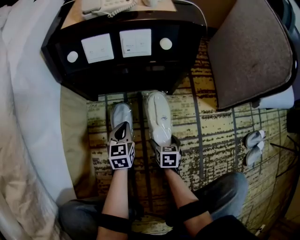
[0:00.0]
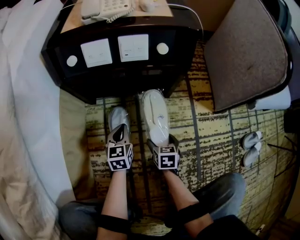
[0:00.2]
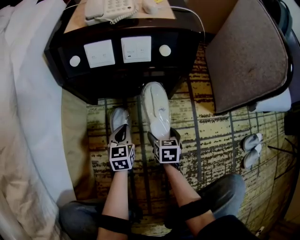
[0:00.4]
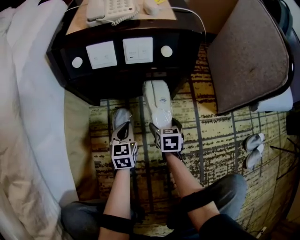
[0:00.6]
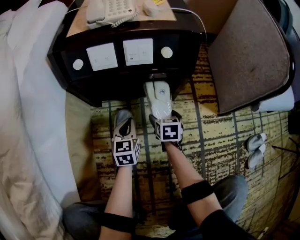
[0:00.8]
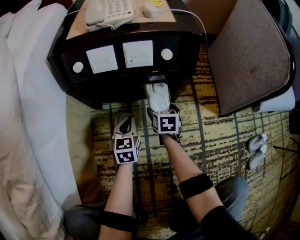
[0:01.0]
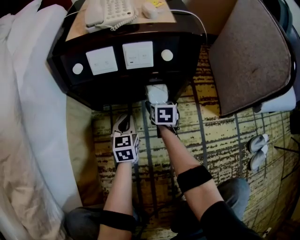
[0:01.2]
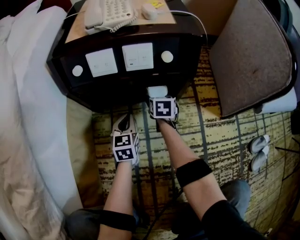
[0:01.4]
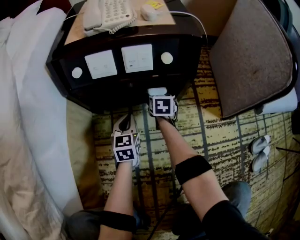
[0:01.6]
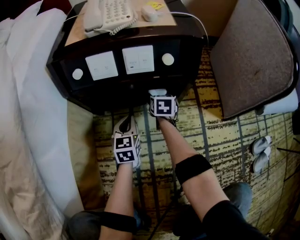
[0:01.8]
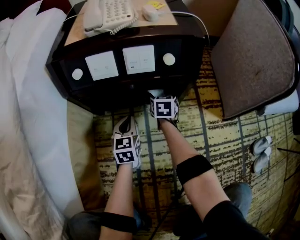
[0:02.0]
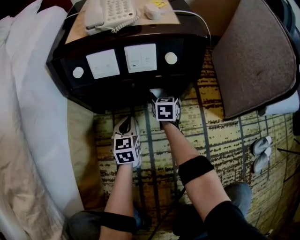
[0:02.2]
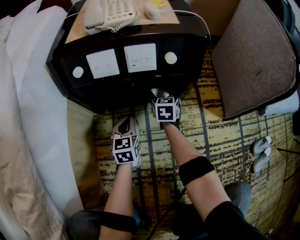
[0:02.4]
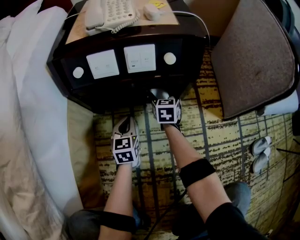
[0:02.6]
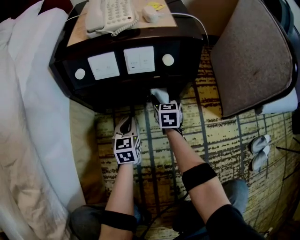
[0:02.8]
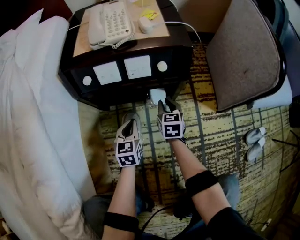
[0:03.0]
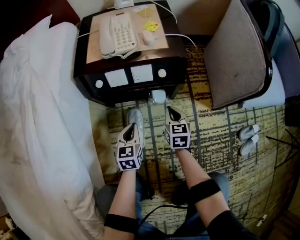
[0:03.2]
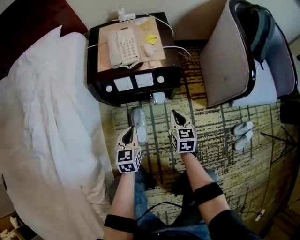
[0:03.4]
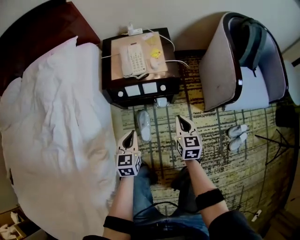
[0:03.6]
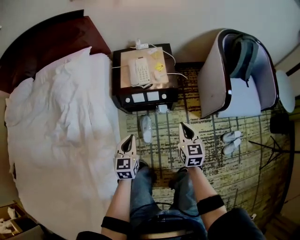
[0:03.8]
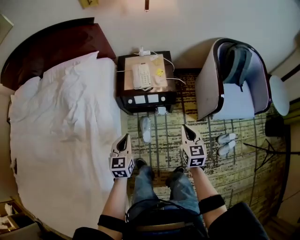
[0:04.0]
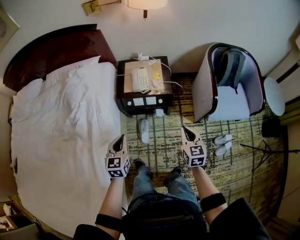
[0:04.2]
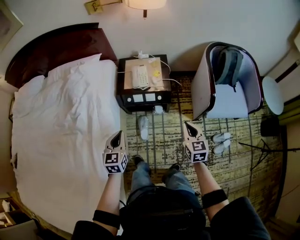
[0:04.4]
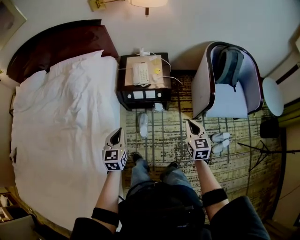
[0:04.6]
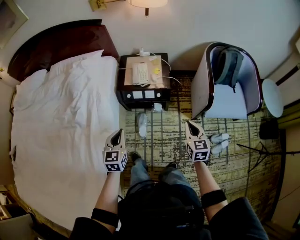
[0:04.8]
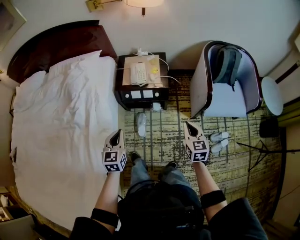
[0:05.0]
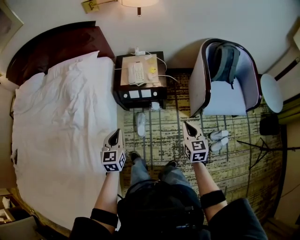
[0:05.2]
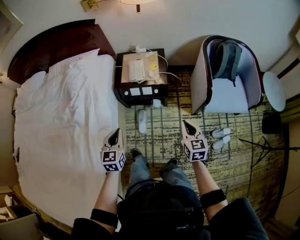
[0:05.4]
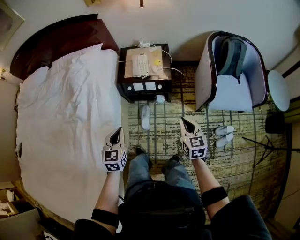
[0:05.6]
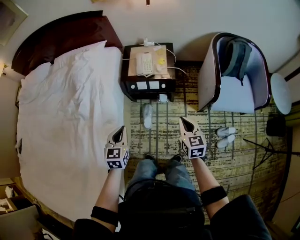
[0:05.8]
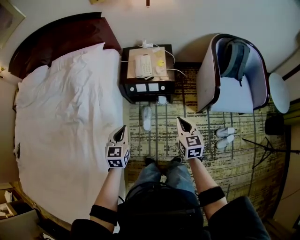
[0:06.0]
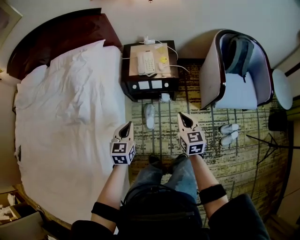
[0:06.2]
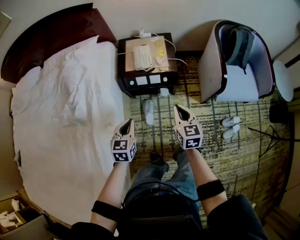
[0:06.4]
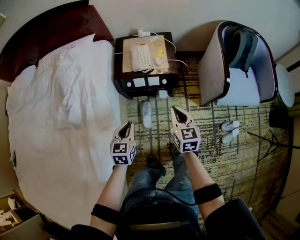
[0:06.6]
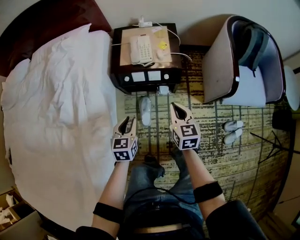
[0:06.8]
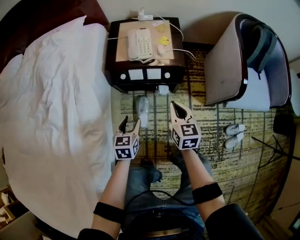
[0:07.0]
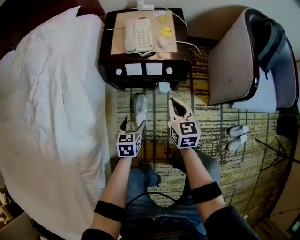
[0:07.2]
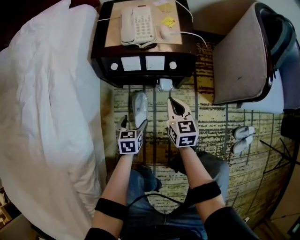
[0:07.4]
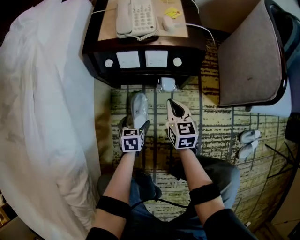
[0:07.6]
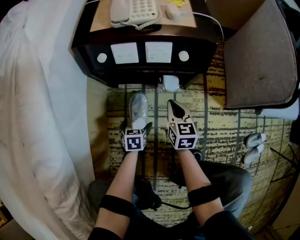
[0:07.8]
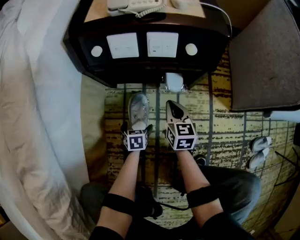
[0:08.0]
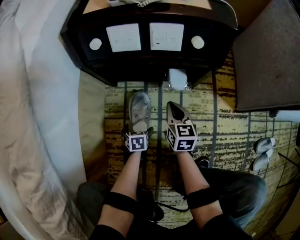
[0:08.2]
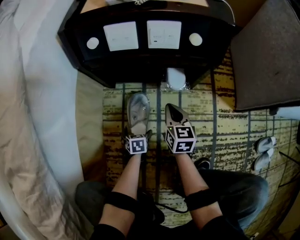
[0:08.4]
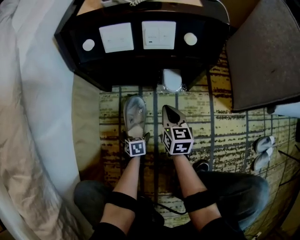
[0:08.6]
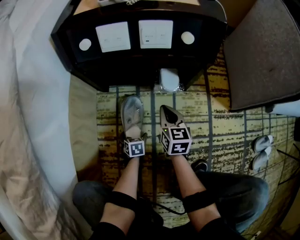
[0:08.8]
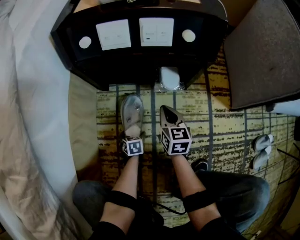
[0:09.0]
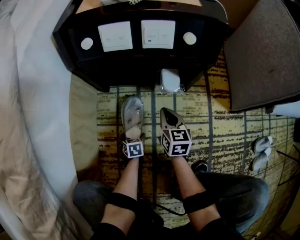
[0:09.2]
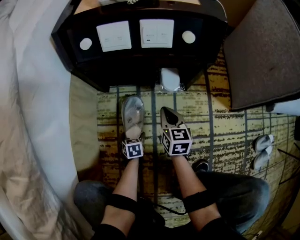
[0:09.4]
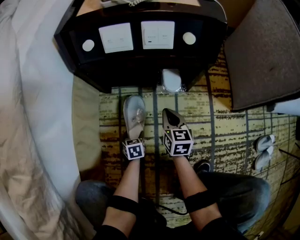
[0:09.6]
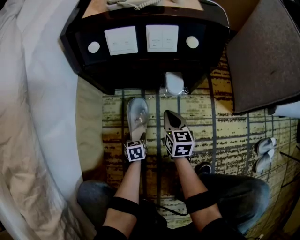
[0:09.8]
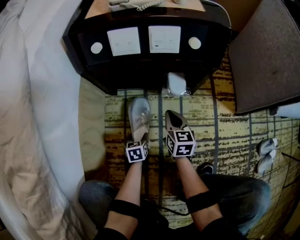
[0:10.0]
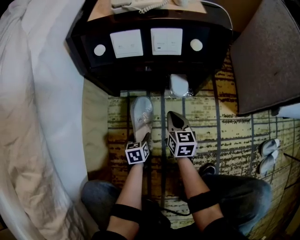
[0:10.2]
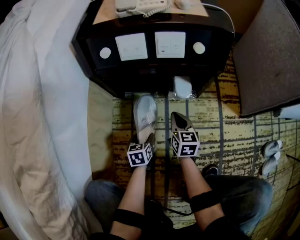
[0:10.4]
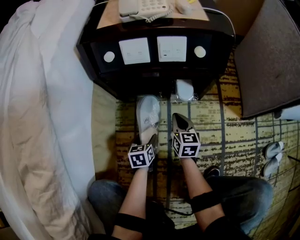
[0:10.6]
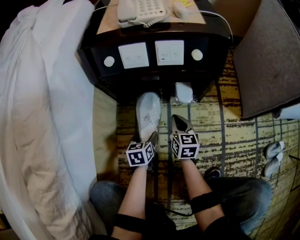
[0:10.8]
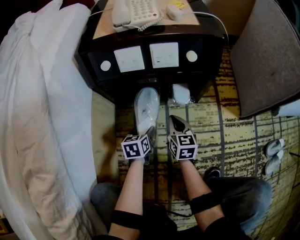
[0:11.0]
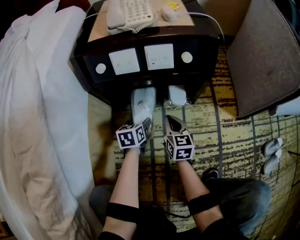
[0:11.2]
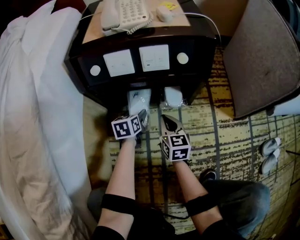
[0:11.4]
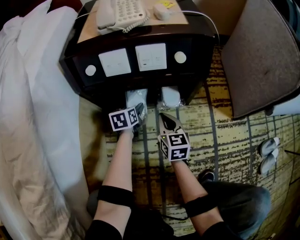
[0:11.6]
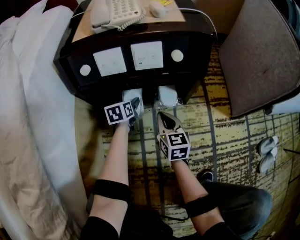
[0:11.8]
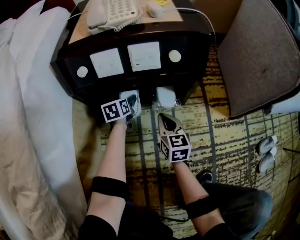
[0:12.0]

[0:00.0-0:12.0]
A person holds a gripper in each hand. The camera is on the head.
0:00.0 to 0:01.6: The right gripper is displaced forward by some 30 cm. The left gripper shifts about 10 cm forward.
0:01.6 to 0:03.0: The right gripper shifts approximately 15 cm upward and backward, and closes; the left gripper goes some 5 cm upward.
0:03.0 to 0:04.4: The grippers both shift upward by about 70 cm.
0:06.0 to 0:07.6: Both grippers move downward, roughly 60 cm. The left gripper changes its angle by roughly 30 degrees, and opens up.
0:07.6 to 0:09.0: Both grippers travel together downward, some 25 cm.
0:09.0 to 0:10.4: The left gripper travels upward by about 10 cm.
0:10.4 to 0:12.0: The right gripper shifts by approximately 5 cm, while the left gripper goes approximately 25 cm forward.

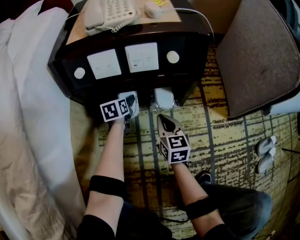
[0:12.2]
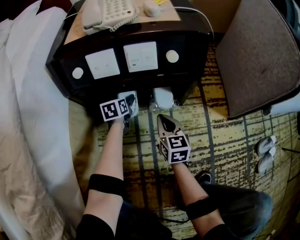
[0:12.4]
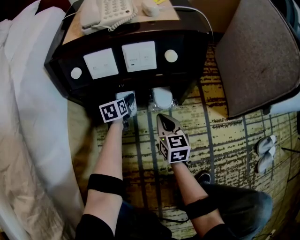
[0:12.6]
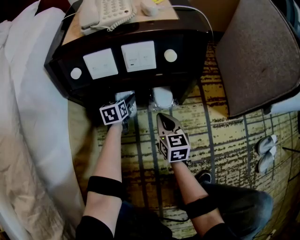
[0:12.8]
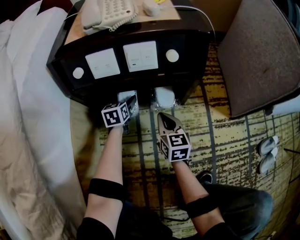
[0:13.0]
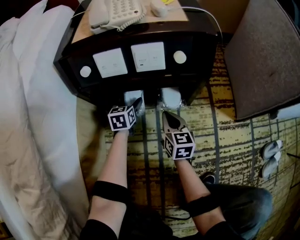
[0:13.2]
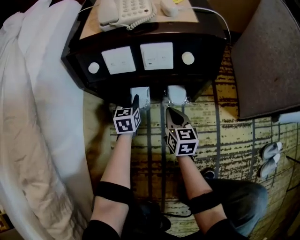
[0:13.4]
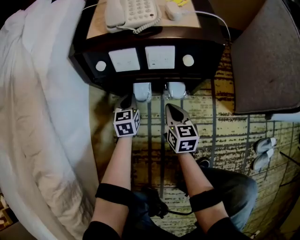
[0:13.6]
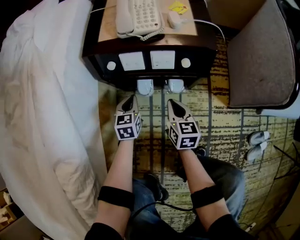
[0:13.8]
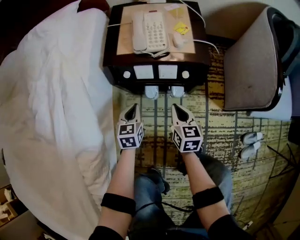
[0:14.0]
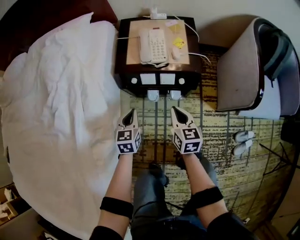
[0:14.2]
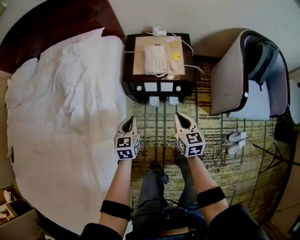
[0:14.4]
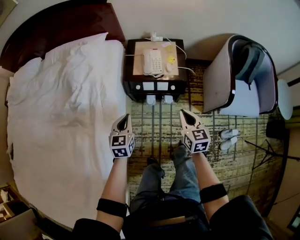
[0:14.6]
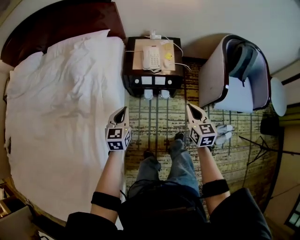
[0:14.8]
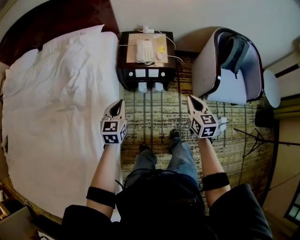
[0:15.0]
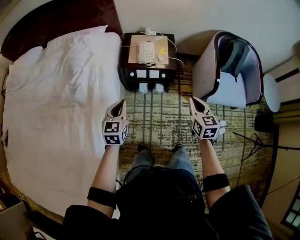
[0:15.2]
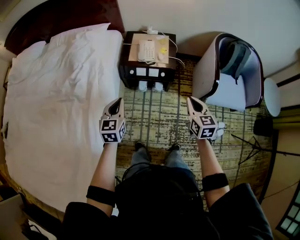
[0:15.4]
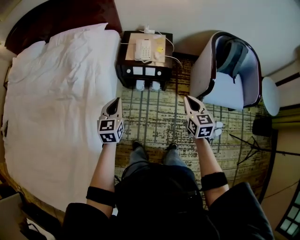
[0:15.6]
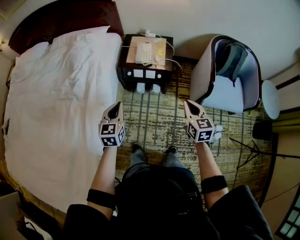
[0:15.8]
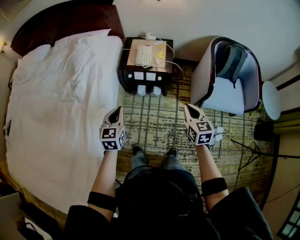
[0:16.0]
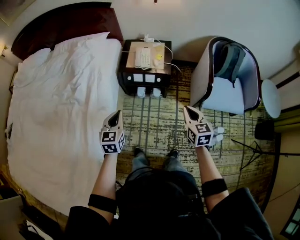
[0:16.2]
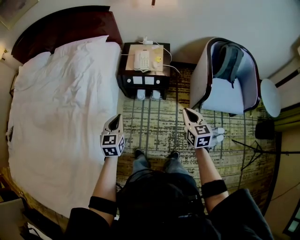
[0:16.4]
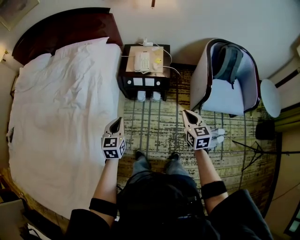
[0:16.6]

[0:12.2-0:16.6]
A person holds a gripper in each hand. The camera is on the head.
0:12.2 to 0:13.6: The left gripper shifts about 10 cm upward and backward, and closes up, while the right gripper goes approximately 5 cm upward.
0:13.6 to 0:15.2: Both grippers travel together upward, some 70 cm.
0:15.2 to 0:16.6: The two grippers go roughly 10 cm backward and to the right.

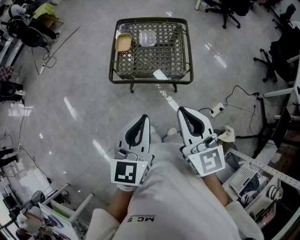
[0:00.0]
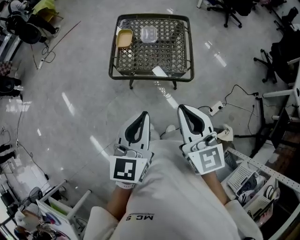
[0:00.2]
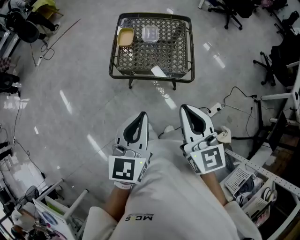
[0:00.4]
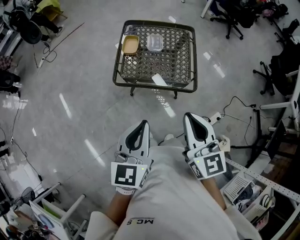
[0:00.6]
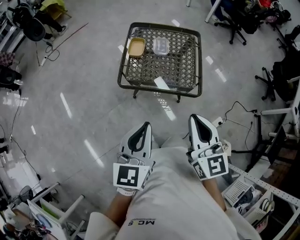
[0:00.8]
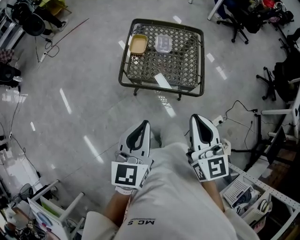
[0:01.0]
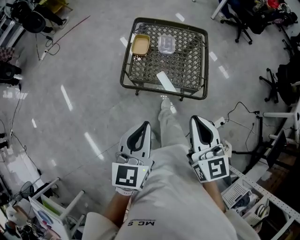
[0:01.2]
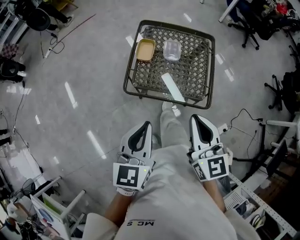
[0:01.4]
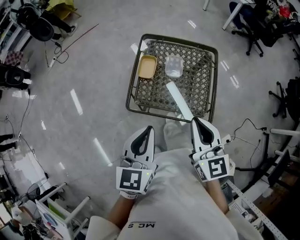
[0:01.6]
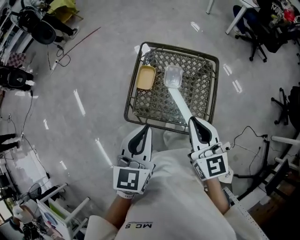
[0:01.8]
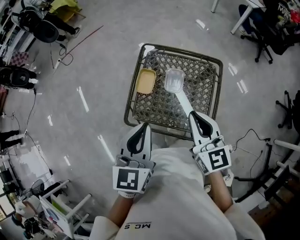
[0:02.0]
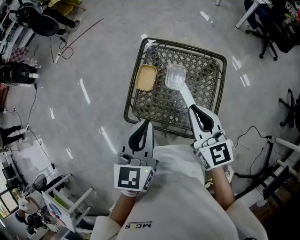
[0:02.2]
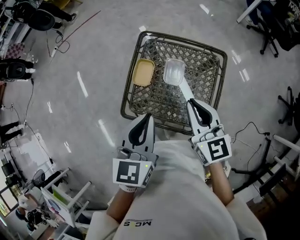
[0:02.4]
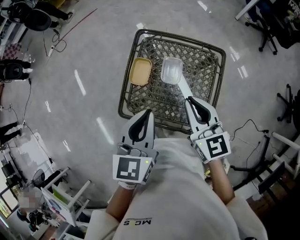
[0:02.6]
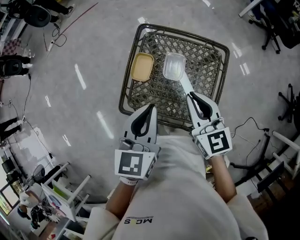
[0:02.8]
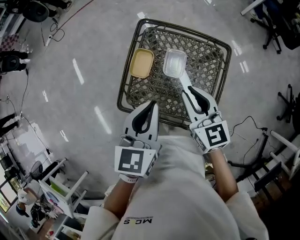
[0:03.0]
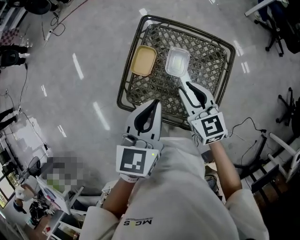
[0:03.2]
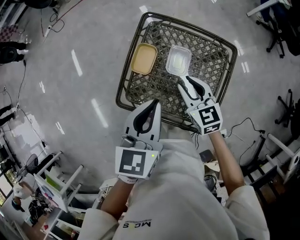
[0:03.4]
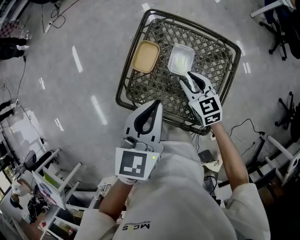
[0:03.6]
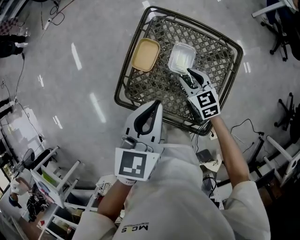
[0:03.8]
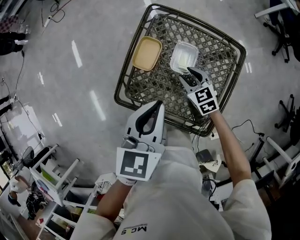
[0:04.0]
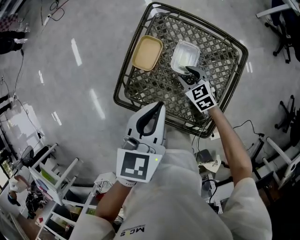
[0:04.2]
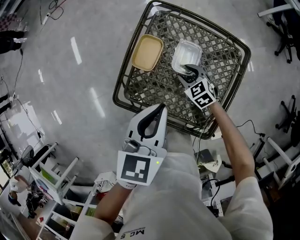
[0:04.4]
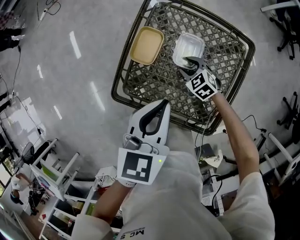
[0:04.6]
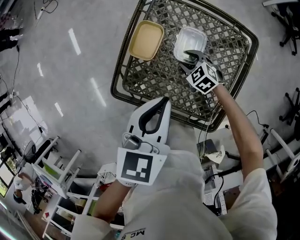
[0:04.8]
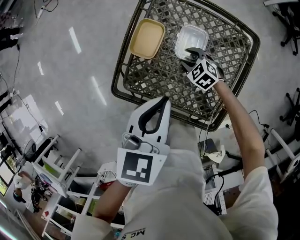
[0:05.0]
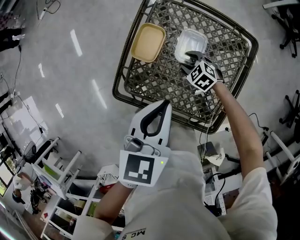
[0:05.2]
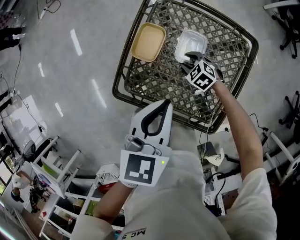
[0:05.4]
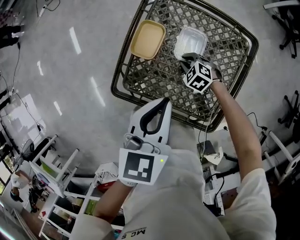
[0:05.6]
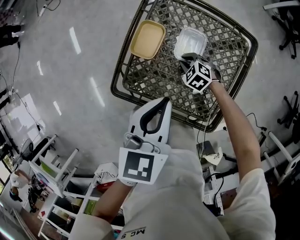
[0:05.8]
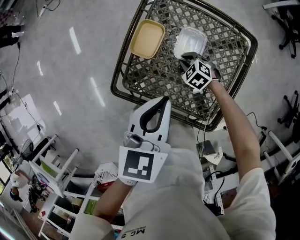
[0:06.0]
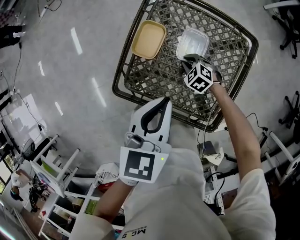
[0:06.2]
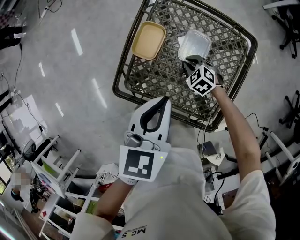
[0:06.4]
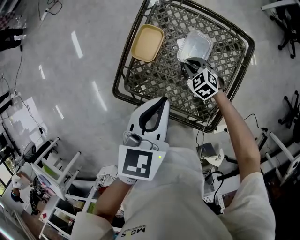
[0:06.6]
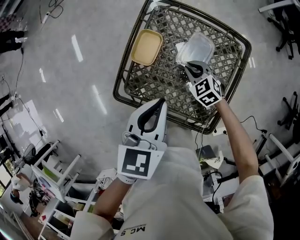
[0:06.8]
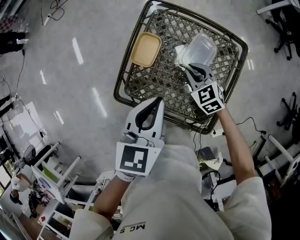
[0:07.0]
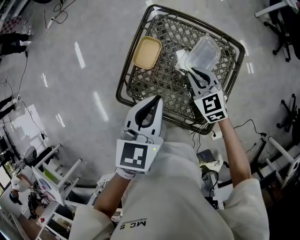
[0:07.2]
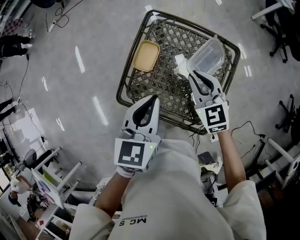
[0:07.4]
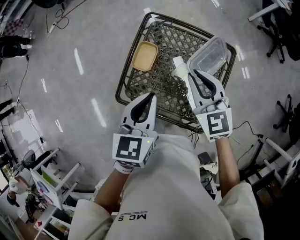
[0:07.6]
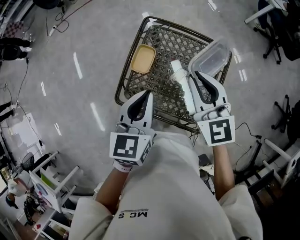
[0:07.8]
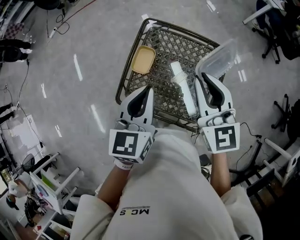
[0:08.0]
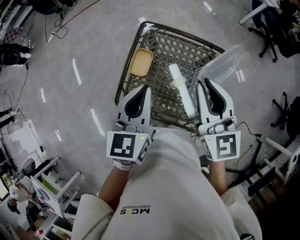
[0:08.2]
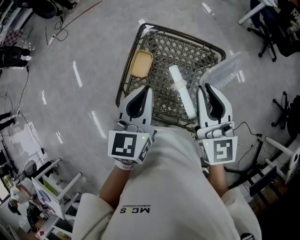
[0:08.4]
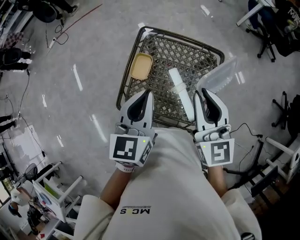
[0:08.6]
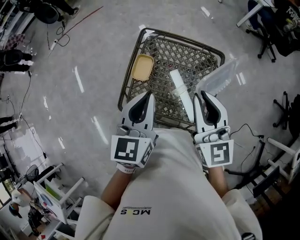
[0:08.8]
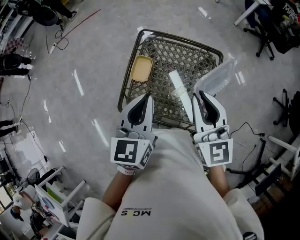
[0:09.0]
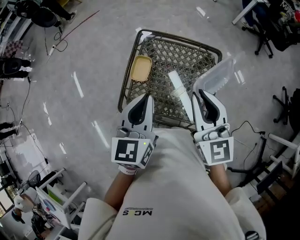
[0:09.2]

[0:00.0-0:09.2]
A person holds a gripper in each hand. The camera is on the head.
0:00.0 to 0:01.6: Both grippers travel together forward, some 25 cm.
0:01.6 to 0:03.0: The left gripper goes some 20 cm forward and to the right. Meanwhile the right gripper shifts approximately 25 cm forward and downward.
0:03.0 to 0:04.6: The left gripper heads downward, covering roughly 10 cm. The right gripper shifts approximately 30 cm downward, angles its fingers downward, by some 30 degrees, and opens.
0:04.6 to 0:06.2: The right gripper closes its fingers.
0:06.2 to 0:07.6: The right gripper shifts some 35 cm upward, and tips its fingers upward by about 40 degrees, while the left gripper shifts about 10 cm upward.
0:07.6 to 0:09.2: The right gripper goes roughly 15 cm upward and backward, and swivels roughly 20 degrees. Meanwhile the left gripper shifts approximately 5 cm upward.
